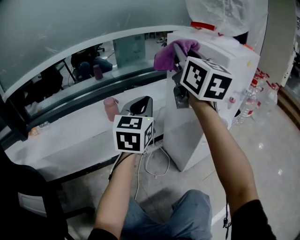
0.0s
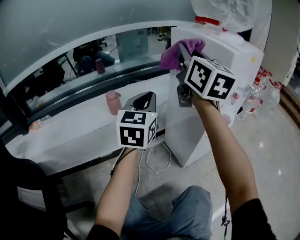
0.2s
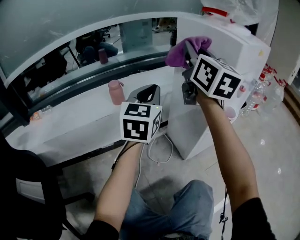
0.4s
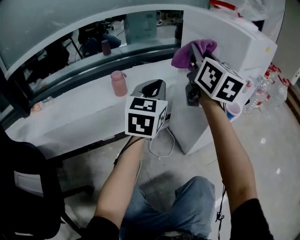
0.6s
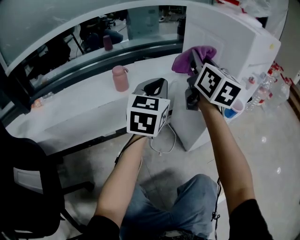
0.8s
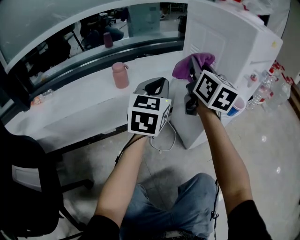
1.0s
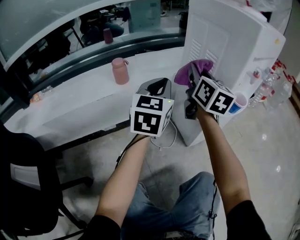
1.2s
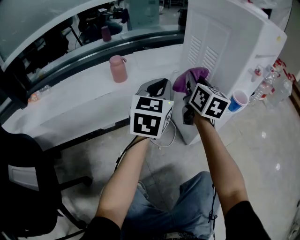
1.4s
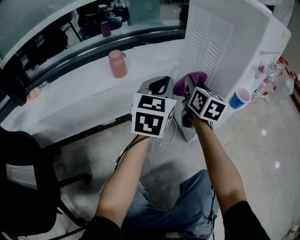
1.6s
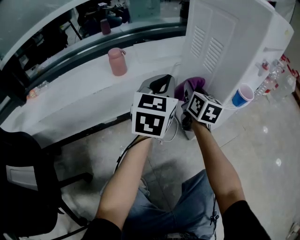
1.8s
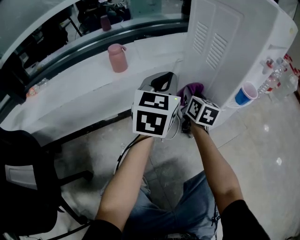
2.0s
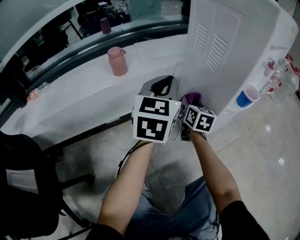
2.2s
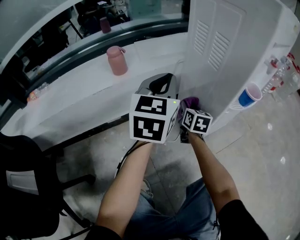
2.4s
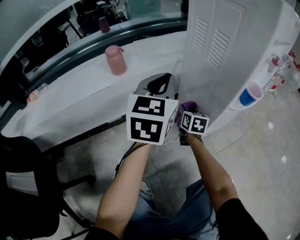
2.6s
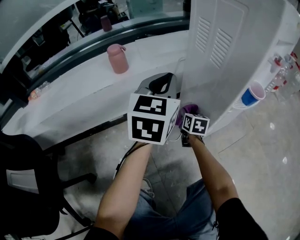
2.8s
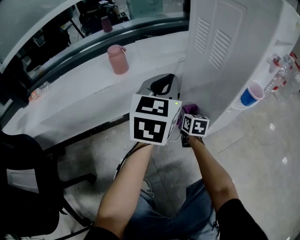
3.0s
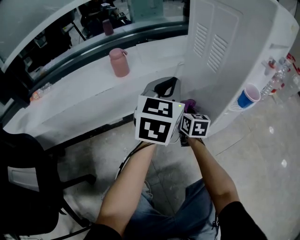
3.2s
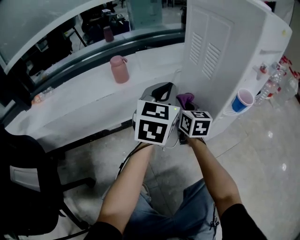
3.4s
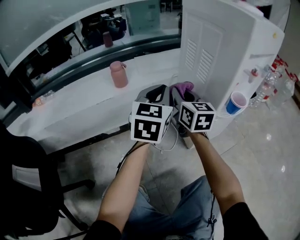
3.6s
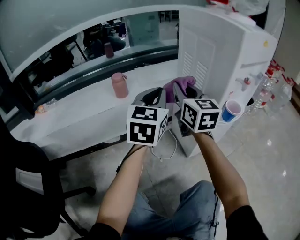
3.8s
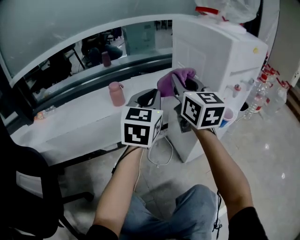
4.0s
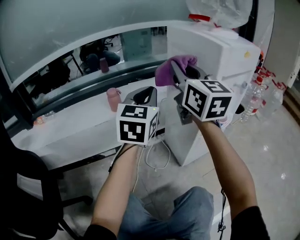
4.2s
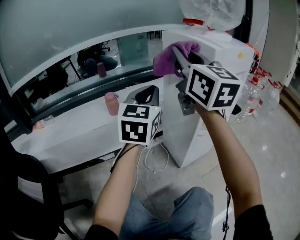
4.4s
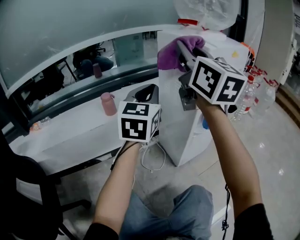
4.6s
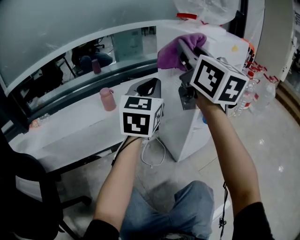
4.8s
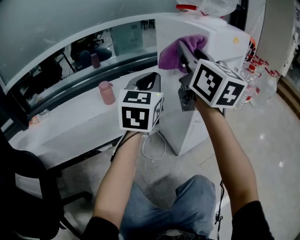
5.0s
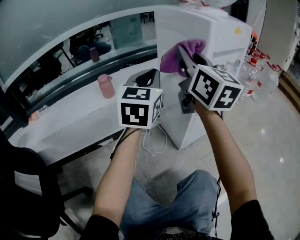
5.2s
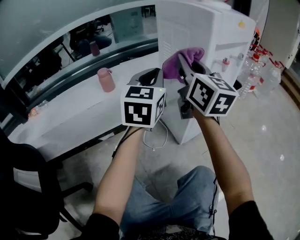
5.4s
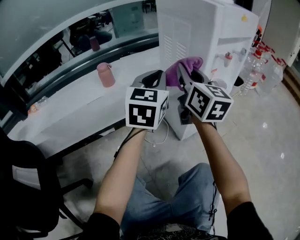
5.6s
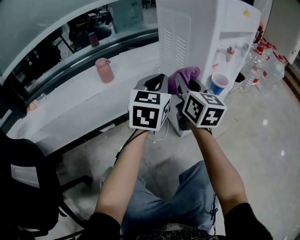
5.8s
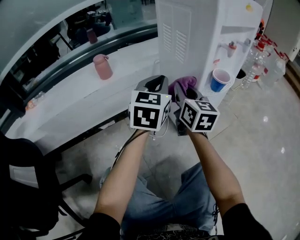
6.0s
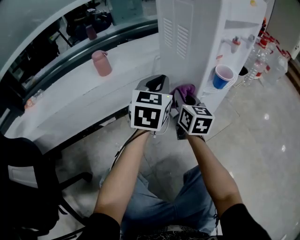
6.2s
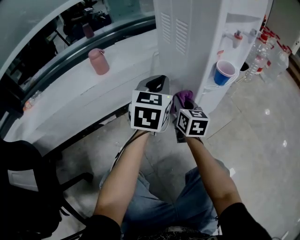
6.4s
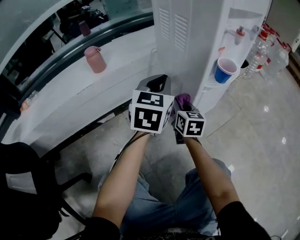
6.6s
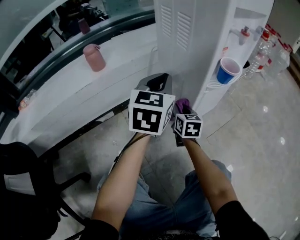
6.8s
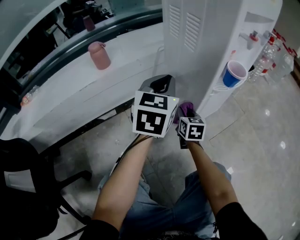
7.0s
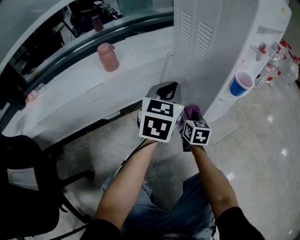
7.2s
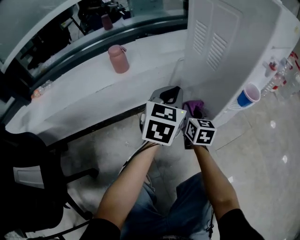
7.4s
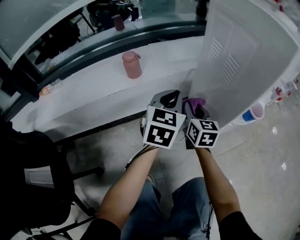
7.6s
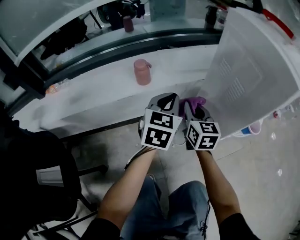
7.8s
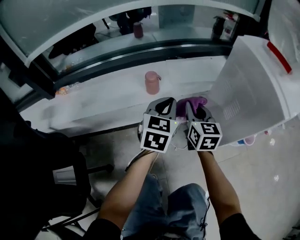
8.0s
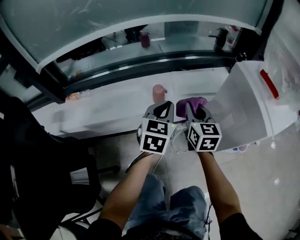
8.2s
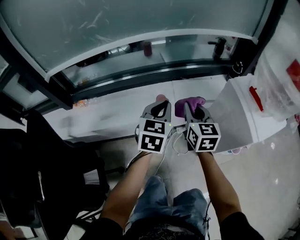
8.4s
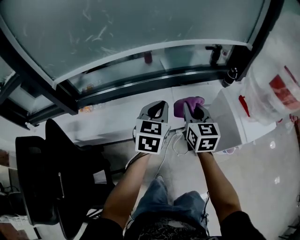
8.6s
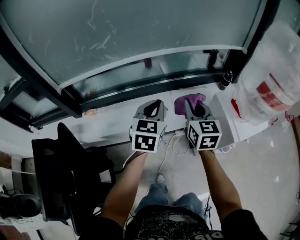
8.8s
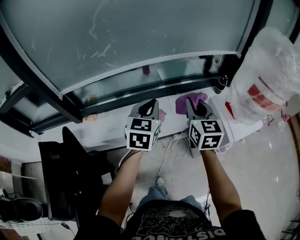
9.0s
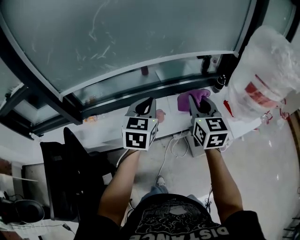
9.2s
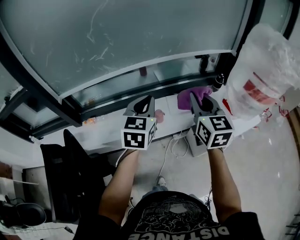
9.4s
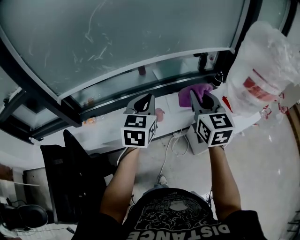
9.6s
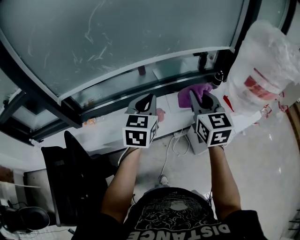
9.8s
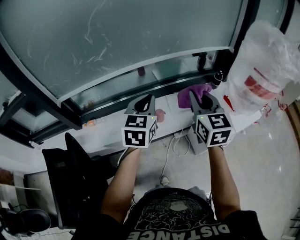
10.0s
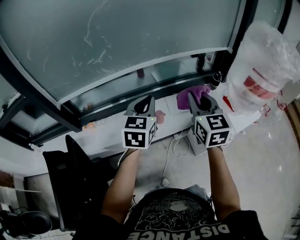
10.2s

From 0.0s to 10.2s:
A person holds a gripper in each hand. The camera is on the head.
From 0.0s to 1.4s: The left gripper goes about 10 cm downward; the right gripper moves downward, approximately 30 cm, and changes its angle by some 20 degrees.
From 1.4s to 3.0s: The right gripper heads downward, covering roughly 30 cm, and swivels some 30 degrees.
From 3.0s to 4.4s: The left gripper shifts about 15 cm upward. Meanwhile the right gripper moves upward, about 60 cm, and angles its fingers upward, by some 50 degrees.
From 4.4s to 5.8s: The left gripper travels downward by approximately 10 cm. Meanwhile the right gripper travels downward by about 25 cm, and swivels about 20 degrees.
From 5.8s to 7.2s: The right gripper shifts some 30 cm downward, and changes its angle by some 30 degrees. The left gripper goes approximately 10 cm downward.
From 7.2s to 8.8s: The left gripper moves upward and to the left, about 50 cm; the right gripper goes some 70 cm upward, and changes its angle by about 30 degrees.
From 8.8s to 10.2s: The two grippers go approximately 10 cm upward.

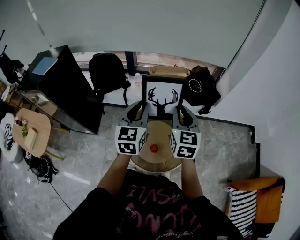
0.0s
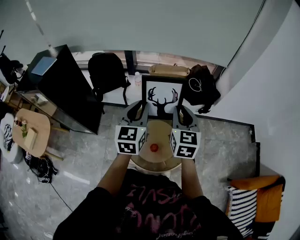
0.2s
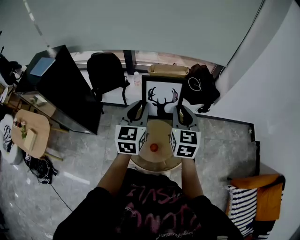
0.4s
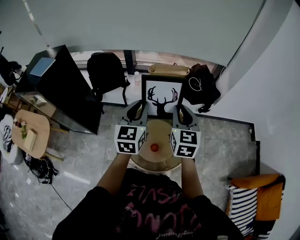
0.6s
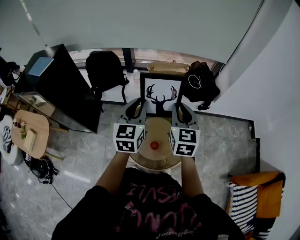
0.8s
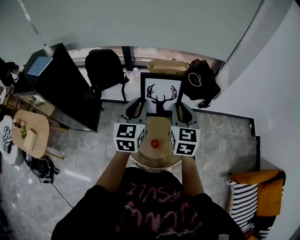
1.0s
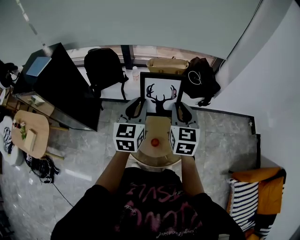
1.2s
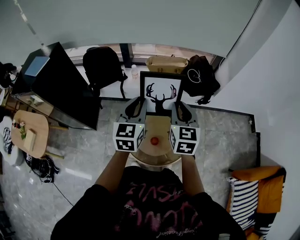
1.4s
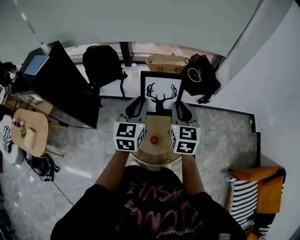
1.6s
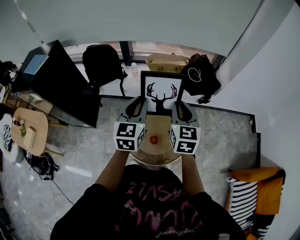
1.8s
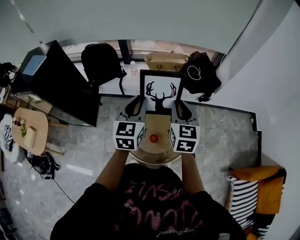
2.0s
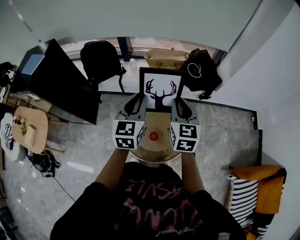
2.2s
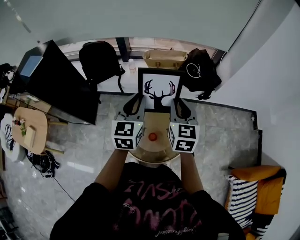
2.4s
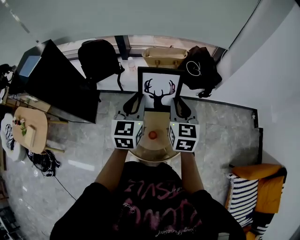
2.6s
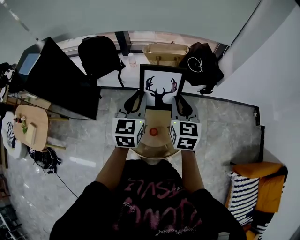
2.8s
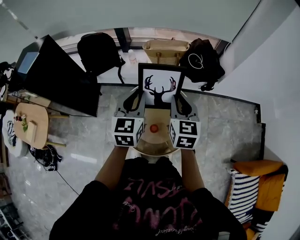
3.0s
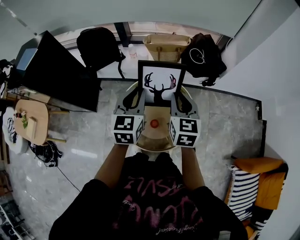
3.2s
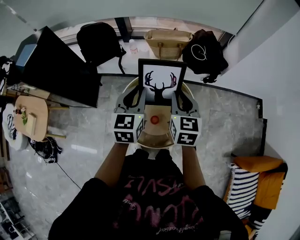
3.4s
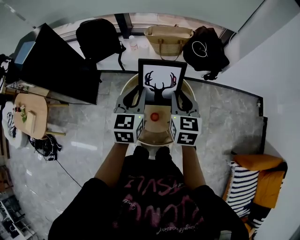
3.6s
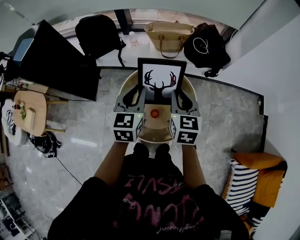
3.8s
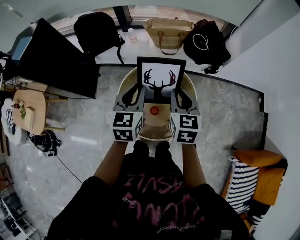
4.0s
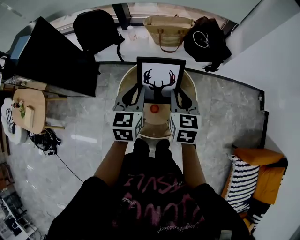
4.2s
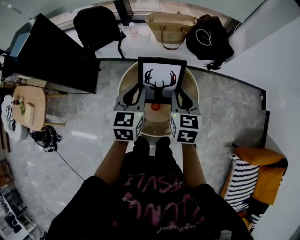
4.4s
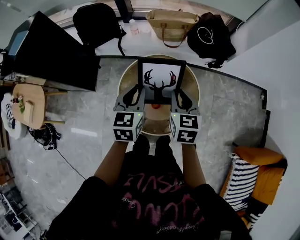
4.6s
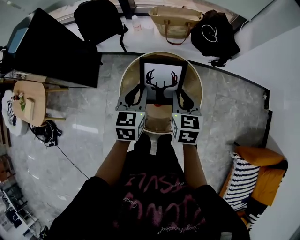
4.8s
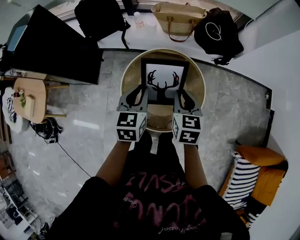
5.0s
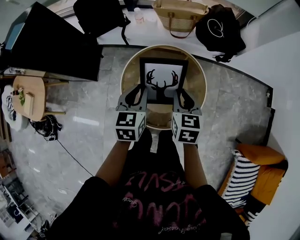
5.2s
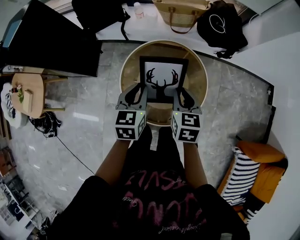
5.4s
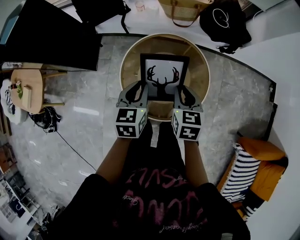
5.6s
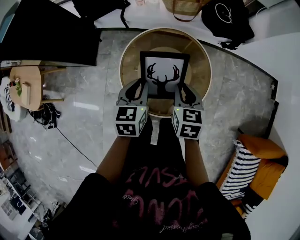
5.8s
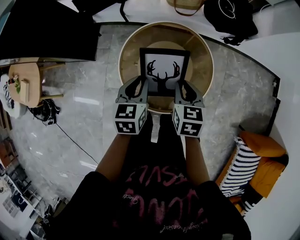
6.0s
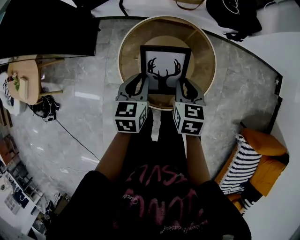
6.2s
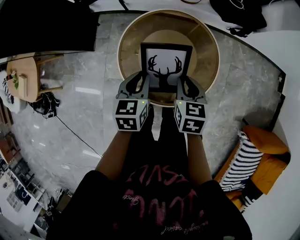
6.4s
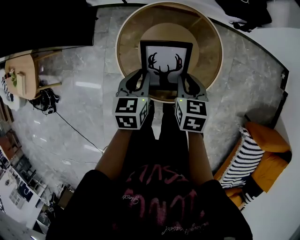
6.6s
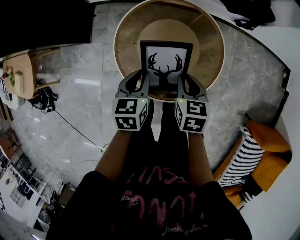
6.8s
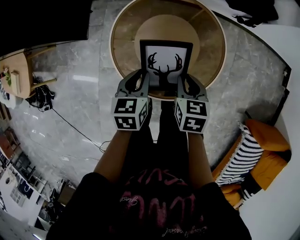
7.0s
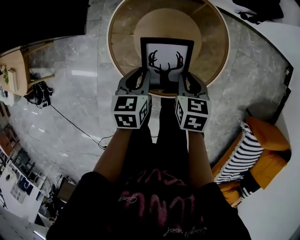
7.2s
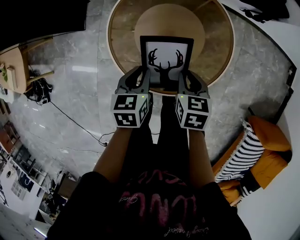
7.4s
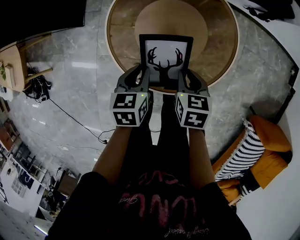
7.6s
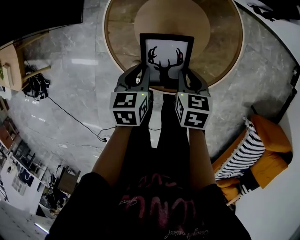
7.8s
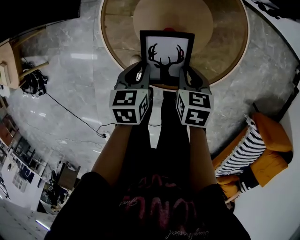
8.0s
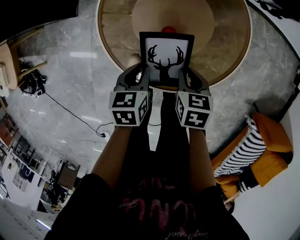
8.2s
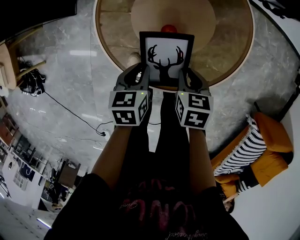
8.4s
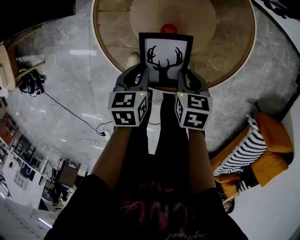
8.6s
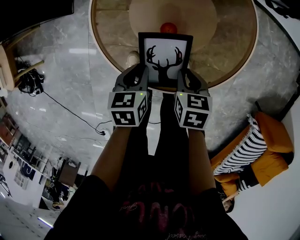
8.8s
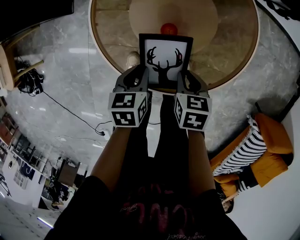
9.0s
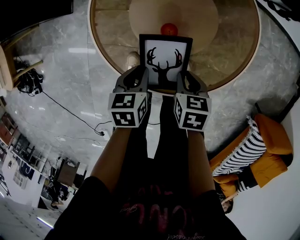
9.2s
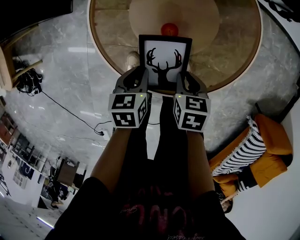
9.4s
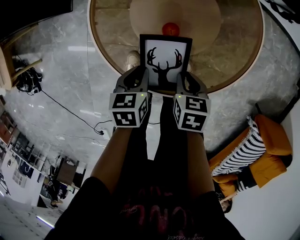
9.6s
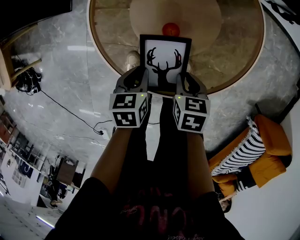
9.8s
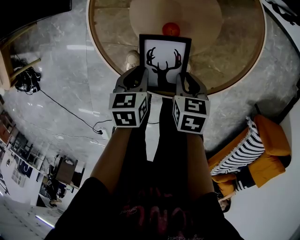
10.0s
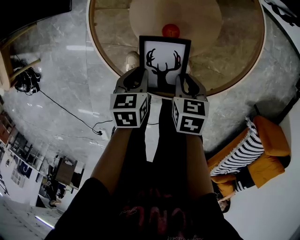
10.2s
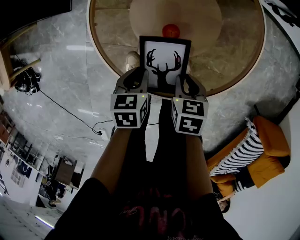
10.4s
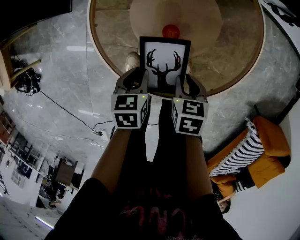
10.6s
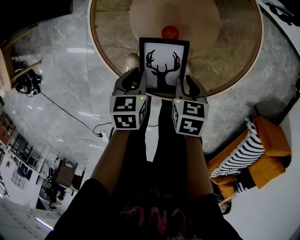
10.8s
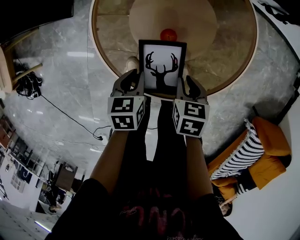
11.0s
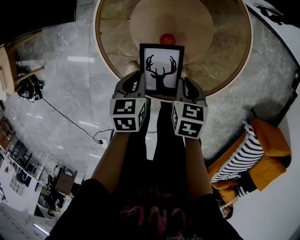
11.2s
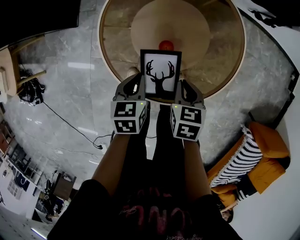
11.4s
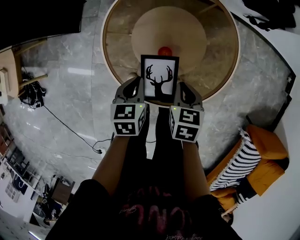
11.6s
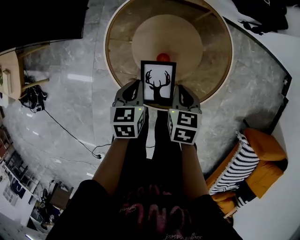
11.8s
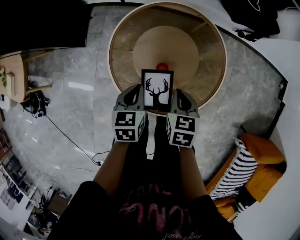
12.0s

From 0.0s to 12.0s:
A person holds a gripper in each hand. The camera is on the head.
From 0.0s to 1.6s: The grippers make only small movements.
From 1.6s to 3.0s: The right gripper moves approximately 5 cm; the left gripper moves approximately 5 cm.
From 3.0s to 4.4s: Both grippers travel together downward, approximately 10 cm.
From 4.4s to 6.0s: The grippers both shift downward by roughly 15 cm.
From 6.0s to 7.6s: The two grippers go some 20 cm downward.
From 7.6s to 9.0s: The two grippers go approximately 10 cm downward.
From 9.0s to 10.4s: The grippers stay close to where they were, moving slightly.
From 10.4s to 12.0s: Both grippers travel together upward and forward, some 20 cm.

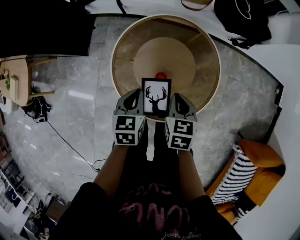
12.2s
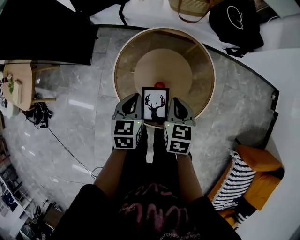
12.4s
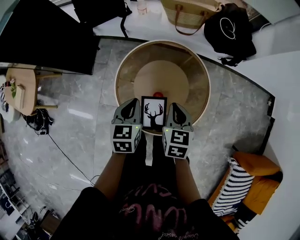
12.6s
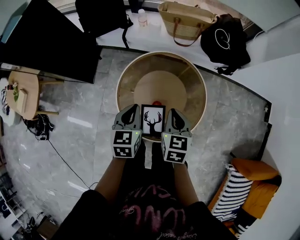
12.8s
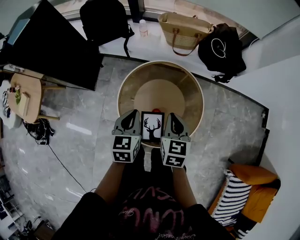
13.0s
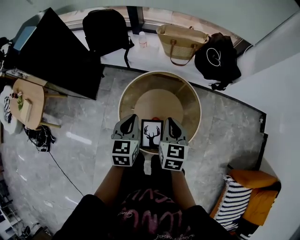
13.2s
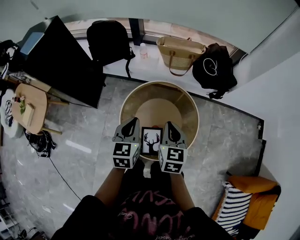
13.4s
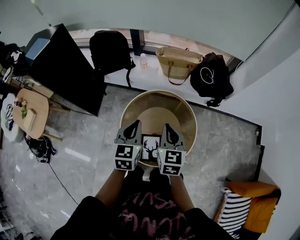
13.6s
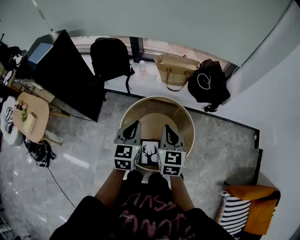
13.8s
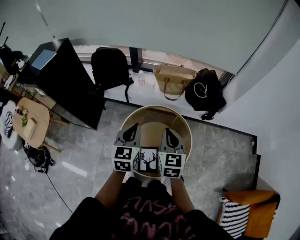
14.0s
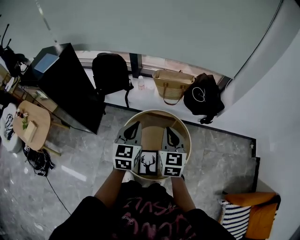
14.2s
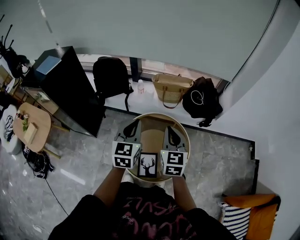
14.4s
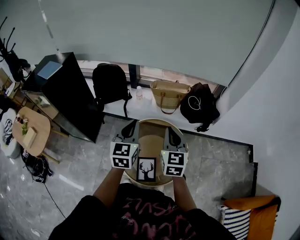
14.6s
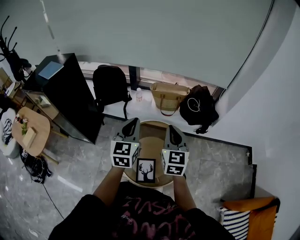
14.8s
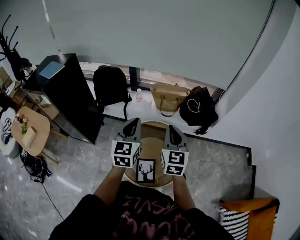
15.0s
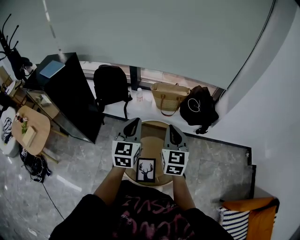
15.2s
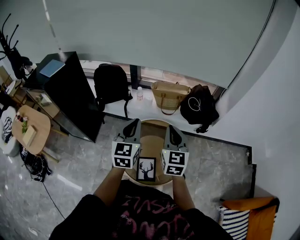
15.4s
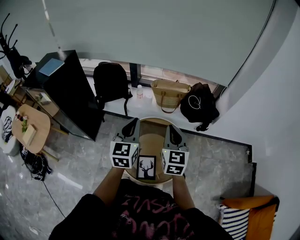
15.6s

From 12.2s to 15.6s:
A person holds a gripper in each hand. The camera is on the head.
From 12.2s to 13.8s: The grippers both shift upward by some 30 cm. The right gripper turns by roughly 30 degrees; the left gripper turns by some 30 degrees.
From 13.8s to 15.6s: The two grippers go about 10 cm upward.
